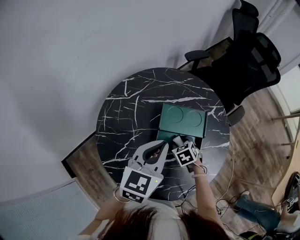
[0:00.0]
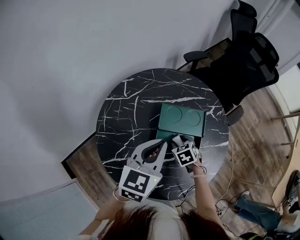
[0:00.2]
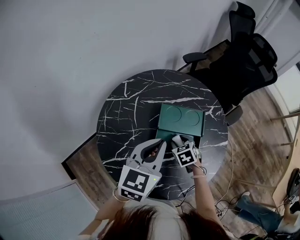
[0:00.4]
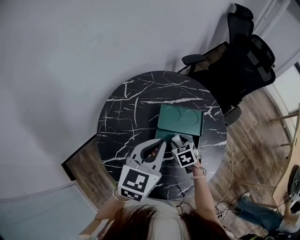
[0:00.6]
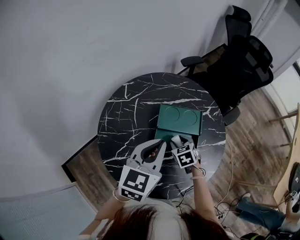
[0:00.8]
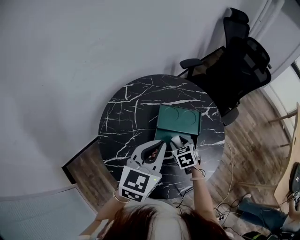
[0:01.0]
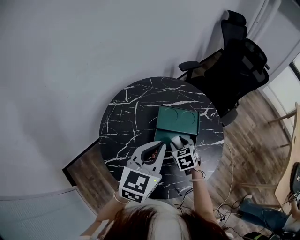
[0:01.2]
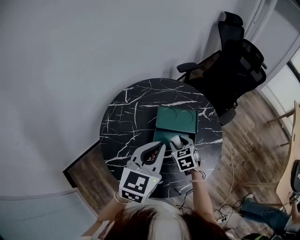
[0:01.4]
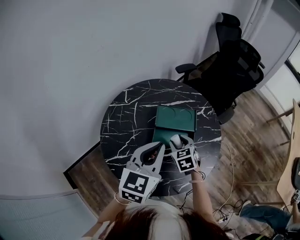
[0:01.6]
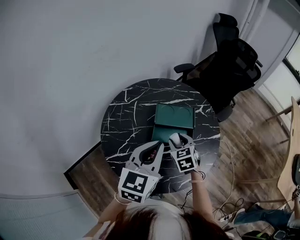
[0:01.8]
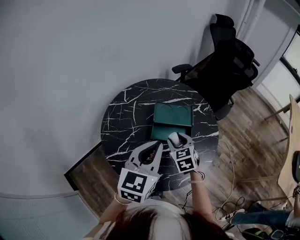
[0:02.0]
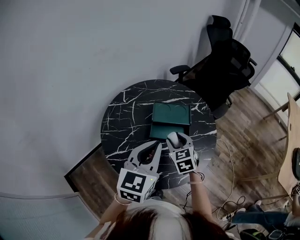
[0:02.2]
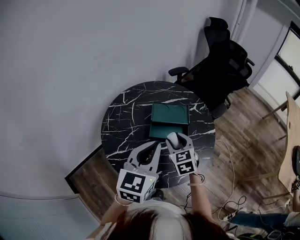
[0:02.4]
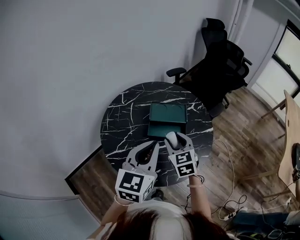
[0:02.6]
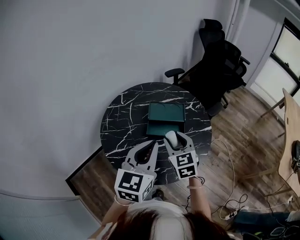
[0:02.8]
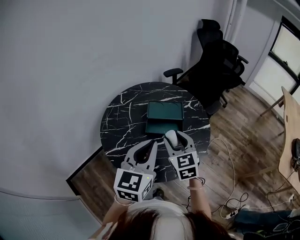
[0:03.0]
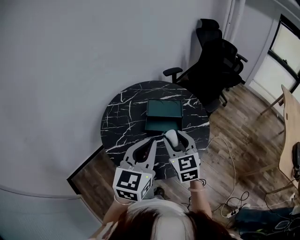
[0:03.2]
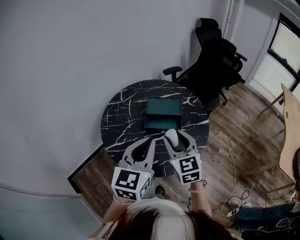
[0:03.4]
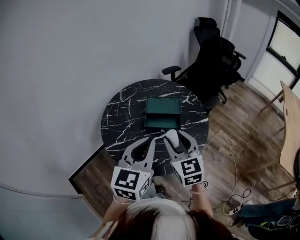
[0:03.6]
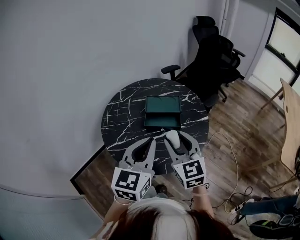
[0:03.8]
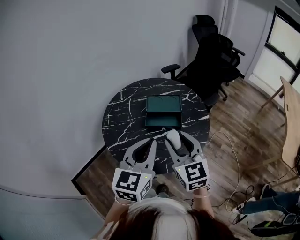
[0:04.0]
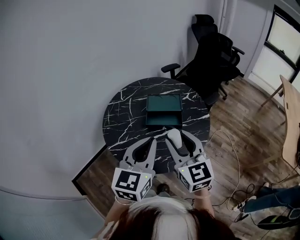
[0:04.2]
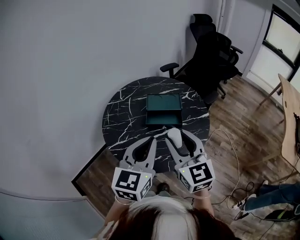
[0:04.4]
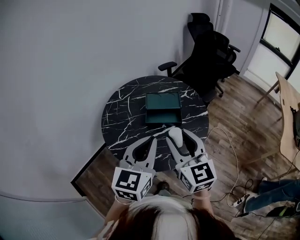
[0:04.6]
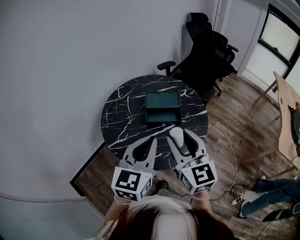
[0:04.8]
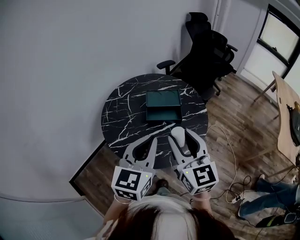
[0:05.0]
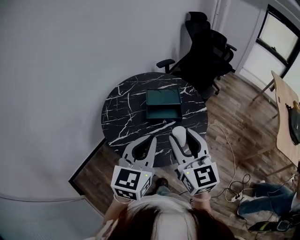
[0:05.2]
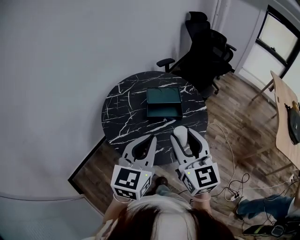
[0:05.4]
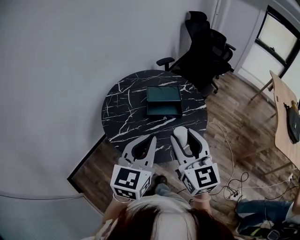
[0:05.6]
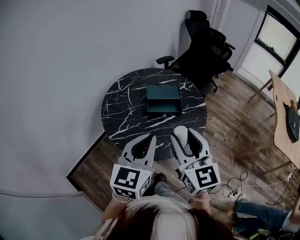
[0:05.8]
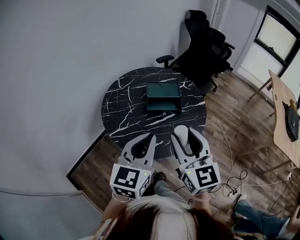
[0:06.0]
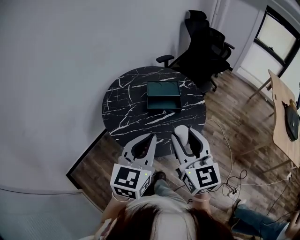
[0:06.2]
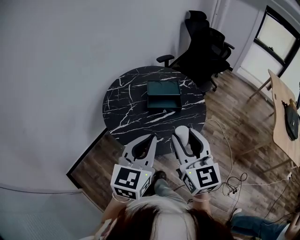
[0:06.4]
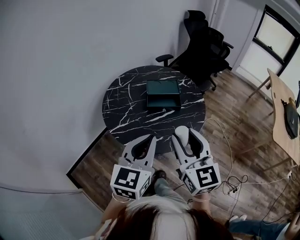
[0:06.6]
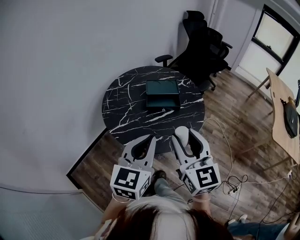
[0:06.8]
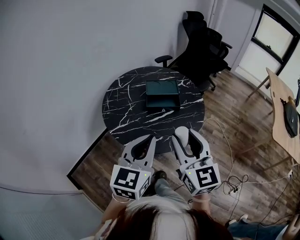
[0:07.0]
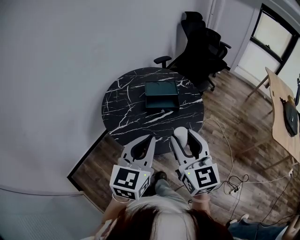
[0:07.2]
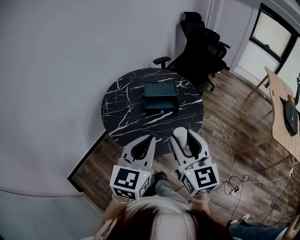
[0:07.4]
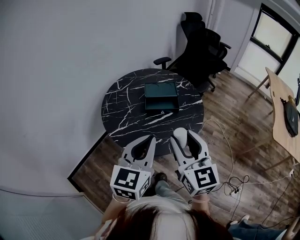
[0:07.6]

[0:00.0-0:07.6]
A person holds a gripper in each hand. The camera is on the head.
0.0 to 1.6 s: The right gripper moves upward, approximately 15 cm, and swivels roughly 20 degrees. The left gripper moves backward and upward, about 10 cm.
1.6 to 3.0 s: The left gripper heads backward, covering approximately 10 cm. The right gripper heads upward and backward, covering about 20 cm, and turns by about 20 degrees.
3.0 to 4.6 s: The right gripper travels upward and backward by roughly 15 cm. Meanwhile the left gripper shifts some 5 cm backward.
4.6 to 6.0 s: Both grippers move backward, about 5 cm.
6.0 to 7.6 s: The grippers move only a little.

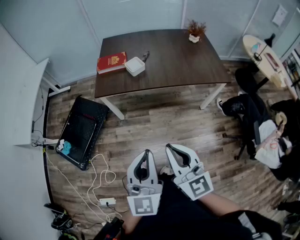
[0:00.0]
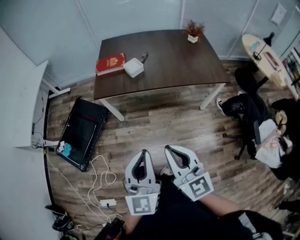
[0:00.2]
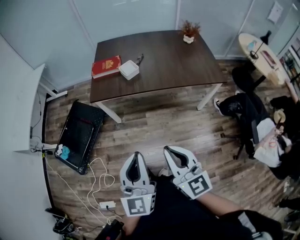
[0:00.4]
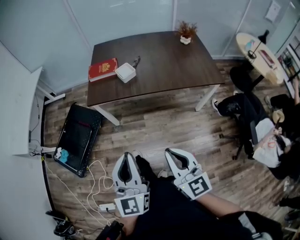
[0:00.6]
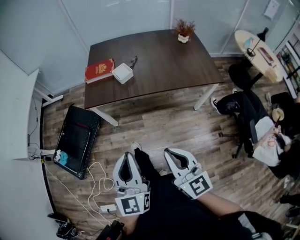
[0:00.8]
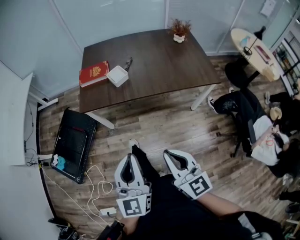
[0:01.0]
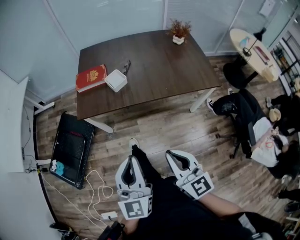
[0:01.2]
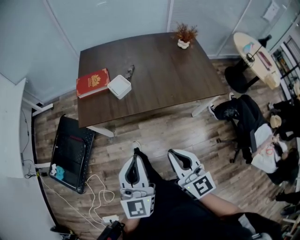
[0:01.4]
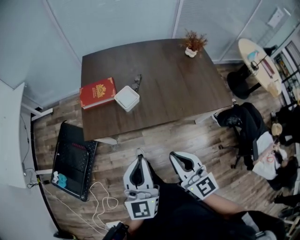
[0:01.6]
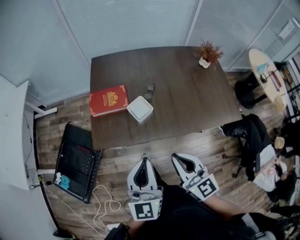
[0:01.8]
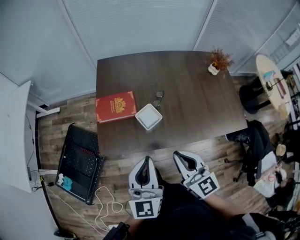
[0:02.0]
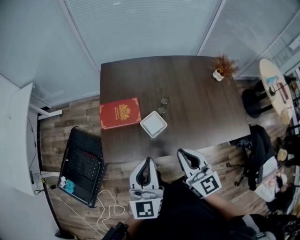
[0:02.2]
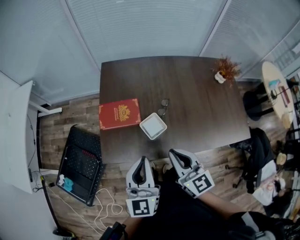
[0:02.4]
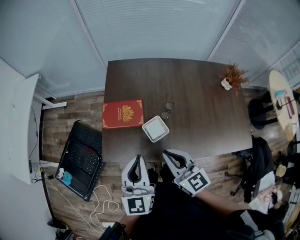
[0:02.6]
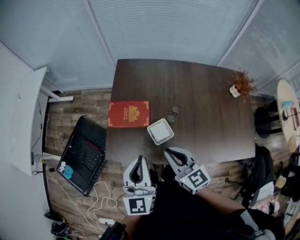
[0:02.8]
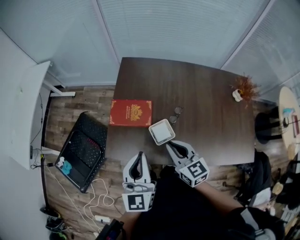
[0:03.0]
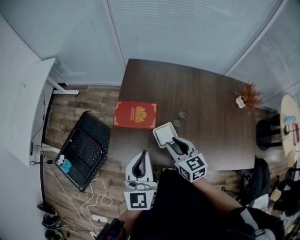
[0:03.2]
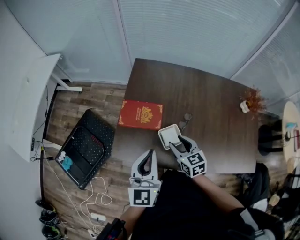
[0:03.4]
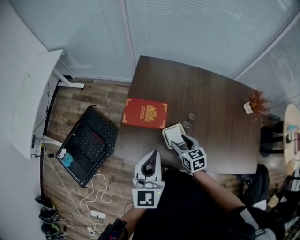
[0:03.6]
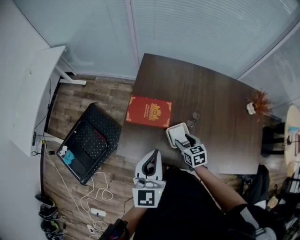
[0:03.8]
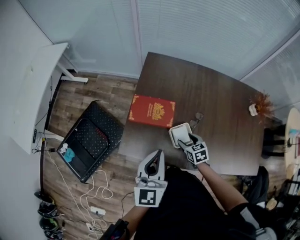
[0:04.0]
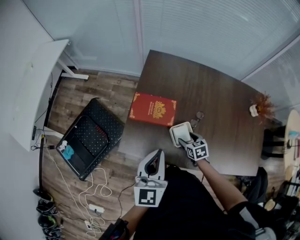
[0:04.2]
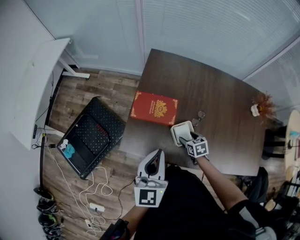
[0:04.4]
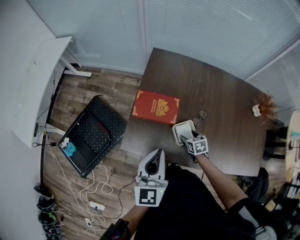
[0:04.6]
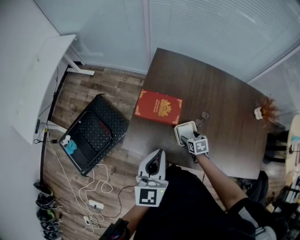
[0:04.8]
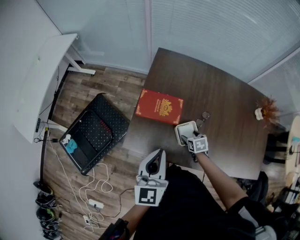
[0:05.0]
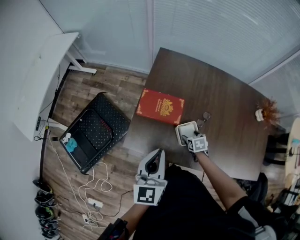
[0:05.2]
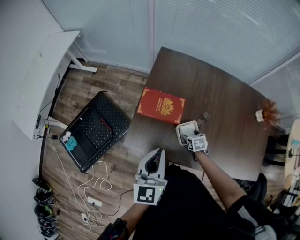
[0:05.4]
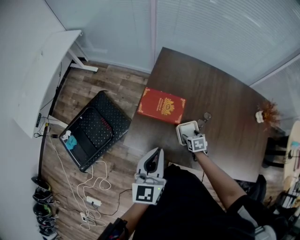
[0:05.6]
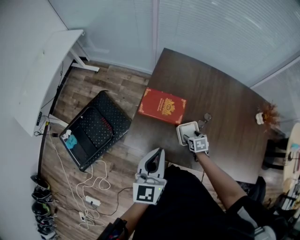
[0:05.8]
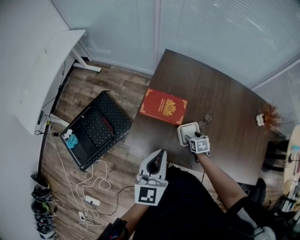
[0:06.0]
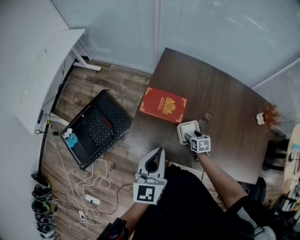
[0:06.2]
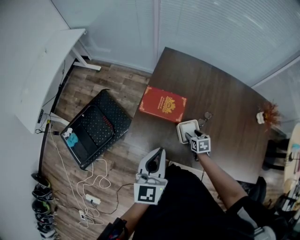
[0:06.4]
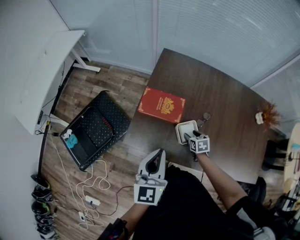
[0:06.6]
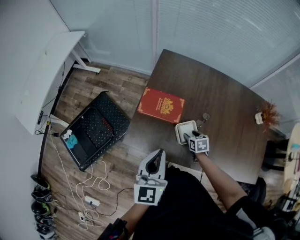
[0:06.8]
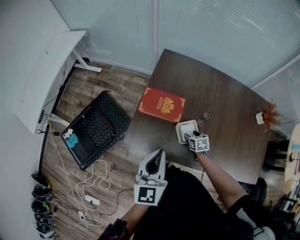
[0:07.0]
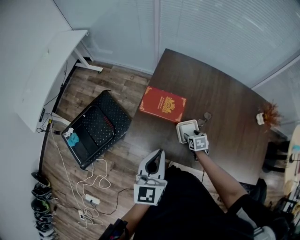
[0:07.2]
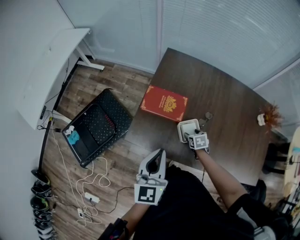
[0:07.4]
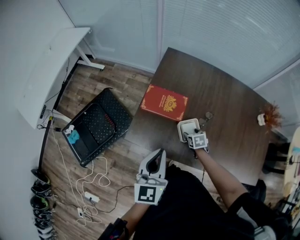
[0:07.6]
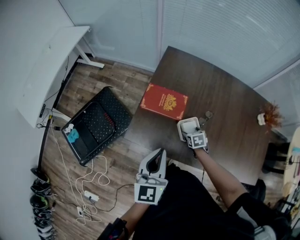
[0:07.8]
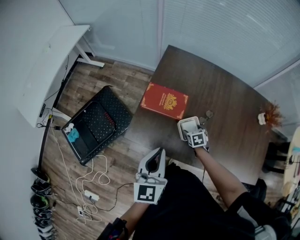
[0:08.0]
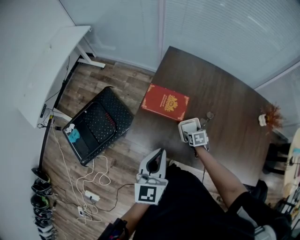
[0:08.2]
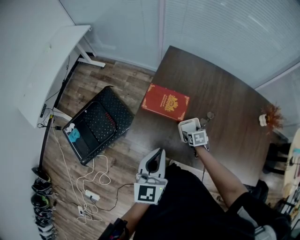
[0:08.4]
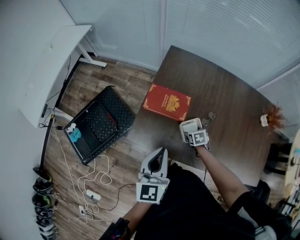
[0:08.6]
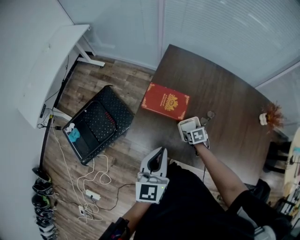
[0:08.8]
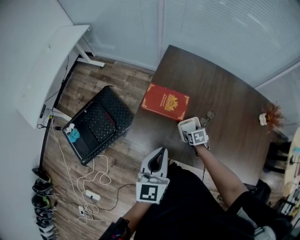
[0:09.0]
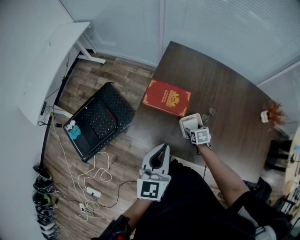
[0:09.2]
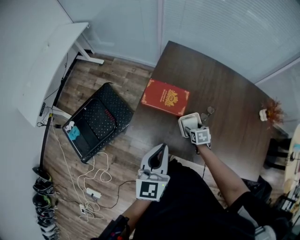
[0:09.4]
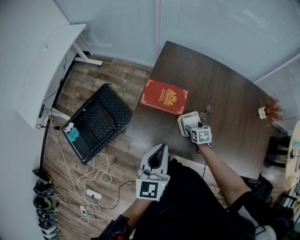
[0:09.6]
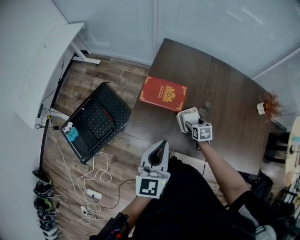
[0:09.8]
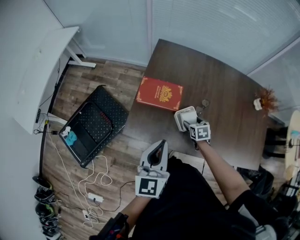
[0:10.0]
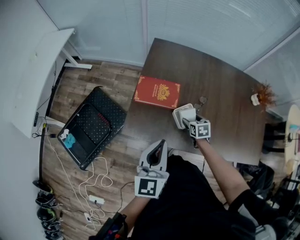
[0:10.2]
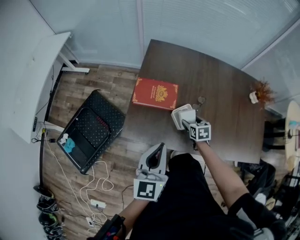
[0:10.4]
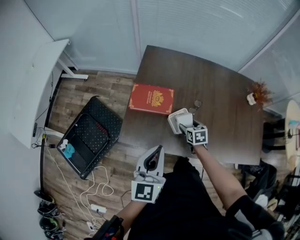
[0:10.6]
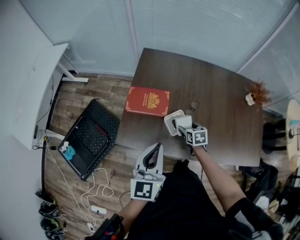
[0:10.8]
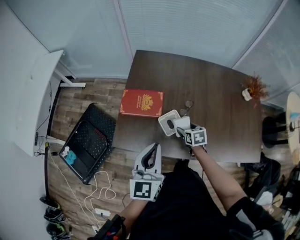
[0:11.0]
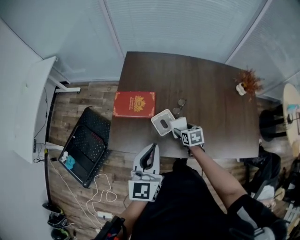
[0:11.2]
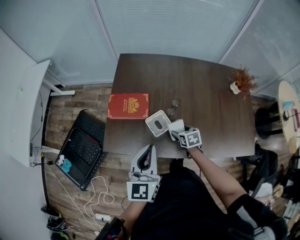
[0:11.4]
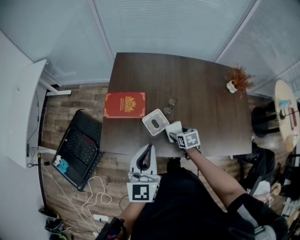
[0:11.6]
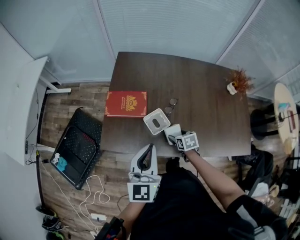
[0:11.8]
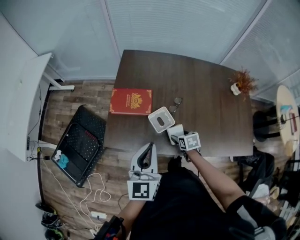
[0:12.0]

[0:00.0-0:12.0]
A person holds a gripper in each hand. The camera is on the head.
0.0 to 1.6 s: The two grippers go about 30 cm forward.
1.6 to 3.0 s: The two grippers go some 30 cm forward. The right gripper rotates some 20 degrees.
3.0 to 4.4 s: The left gripper shifts by some 5 cm; the right gripper moves downward, some 25 cm, points its fingers approximately 40 degrees further downward, and opens up.
4.4 to 9.0 s: The grippers stay close to where they were, moving slightly.
9.0 to 10.4 s: The right gripper travels upward by approximately 5 cm, and changes its angle by roughly 20 degrees.
10.4 to 12.0 s: The left gripper goes about 10 cm to the right. Meanwhile the right gripper heads backward and to the right, covering approximately 10 cm.

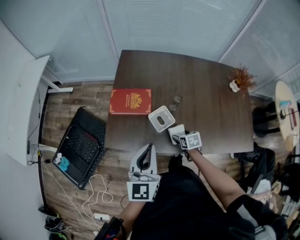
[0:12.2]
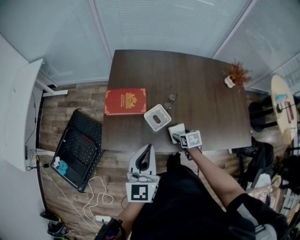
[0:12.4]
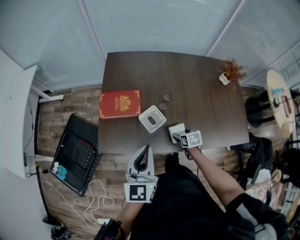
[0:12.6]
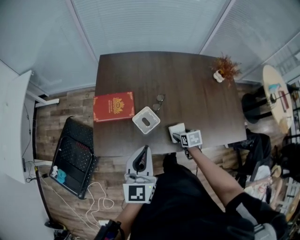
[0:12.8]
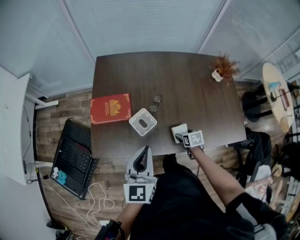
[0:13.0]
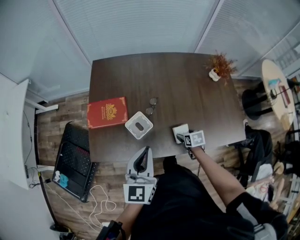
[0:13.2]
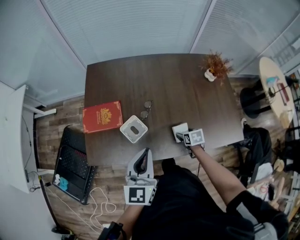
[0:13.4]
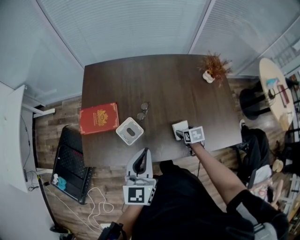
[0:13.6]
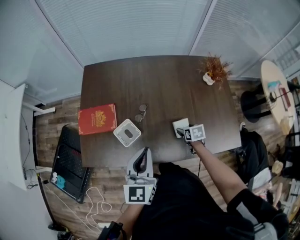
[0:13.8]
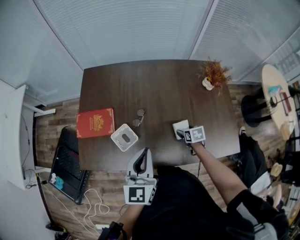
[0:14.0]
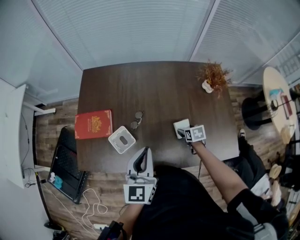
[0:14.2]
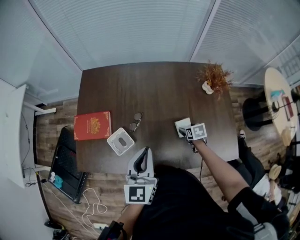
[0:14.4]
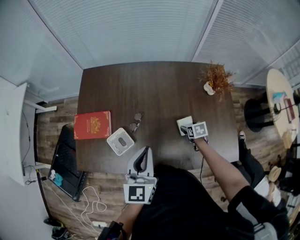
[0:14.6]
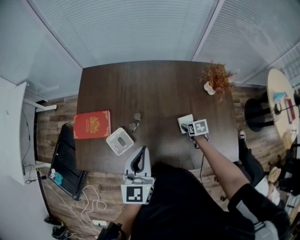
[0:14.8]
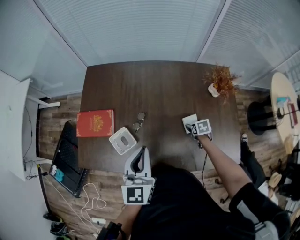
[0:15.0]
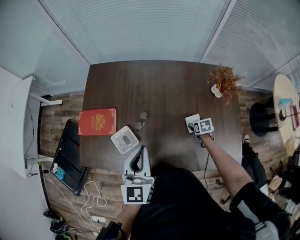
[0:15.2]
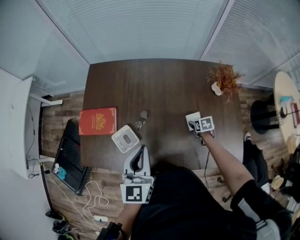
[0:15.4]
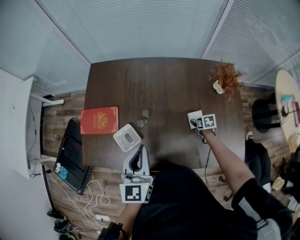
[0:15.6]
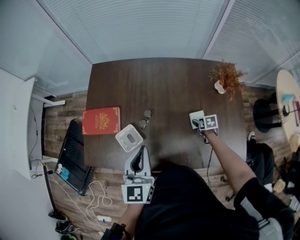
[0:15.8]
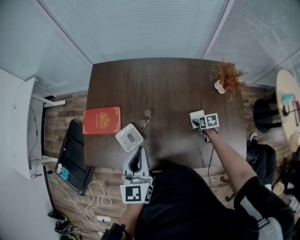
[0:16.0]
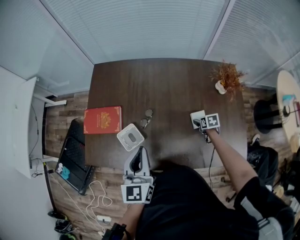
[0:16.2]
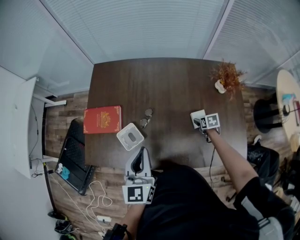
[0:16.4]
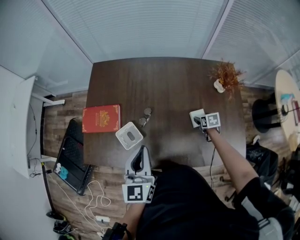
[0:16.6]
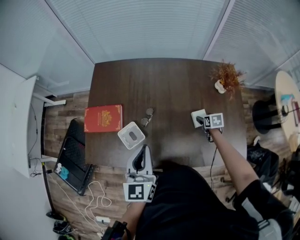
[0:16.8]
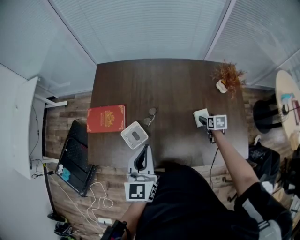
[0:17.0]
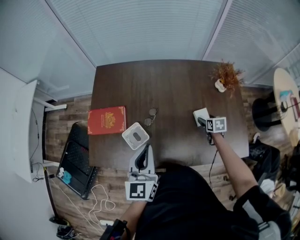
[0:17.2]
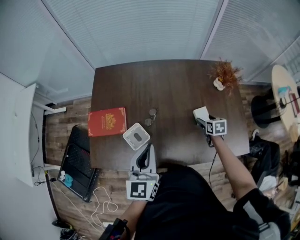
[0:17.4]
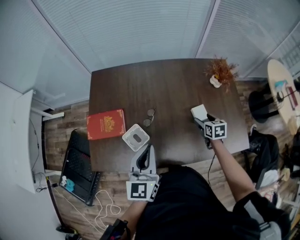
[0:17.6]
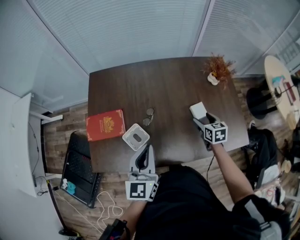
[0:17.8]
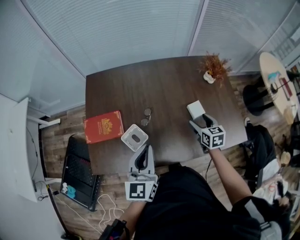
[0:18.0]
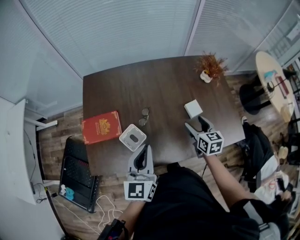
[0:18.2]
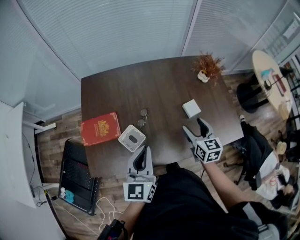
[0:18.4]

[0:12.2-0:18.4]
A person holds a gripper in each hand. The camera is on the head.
12.2 to 13.8 s: The two grippers go about 20 cm to the right.
13.8 to 15.4 s: The left gripper heads forward, covering some 5 cm. Meanwhile the right gripper goes approximately 15 cm forward and to the right.
15.4 to 16.8 s: The grippers stay close to where they were, moving slightly.
16.8 to 18.4 s: The right gripper moves upward, to the left and backward, roughly 30 cm, and tips its fingers upward by about 40 degrees.
